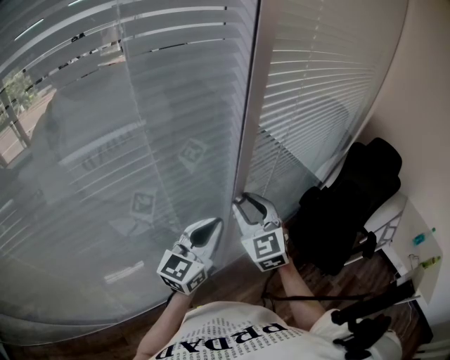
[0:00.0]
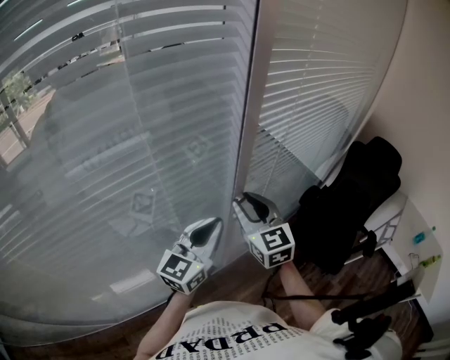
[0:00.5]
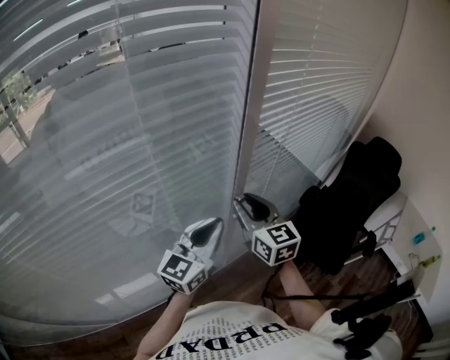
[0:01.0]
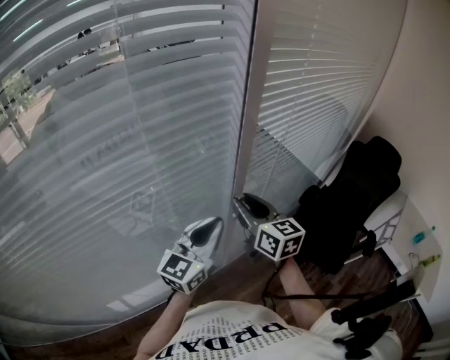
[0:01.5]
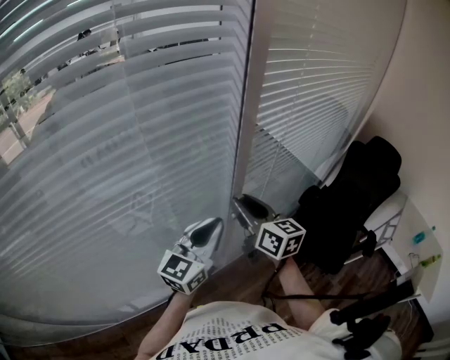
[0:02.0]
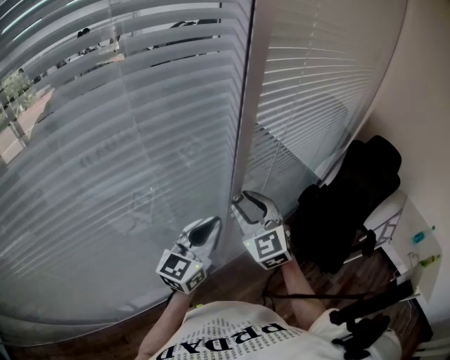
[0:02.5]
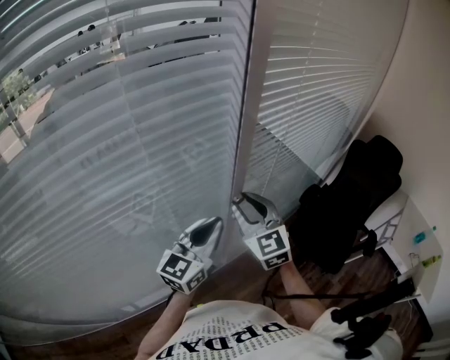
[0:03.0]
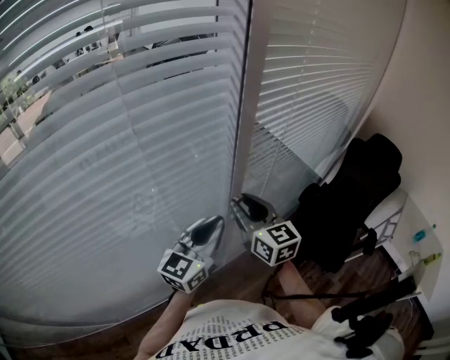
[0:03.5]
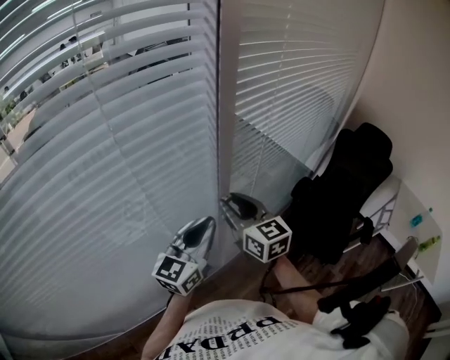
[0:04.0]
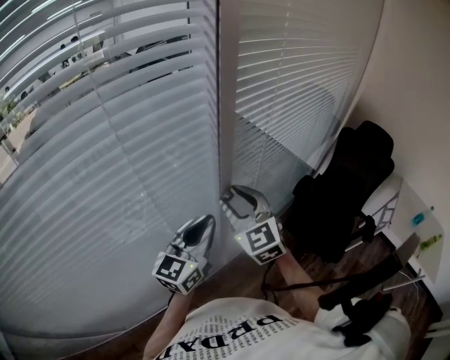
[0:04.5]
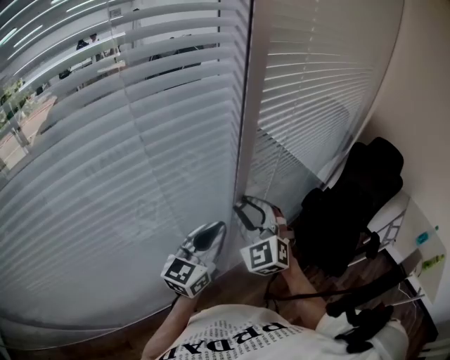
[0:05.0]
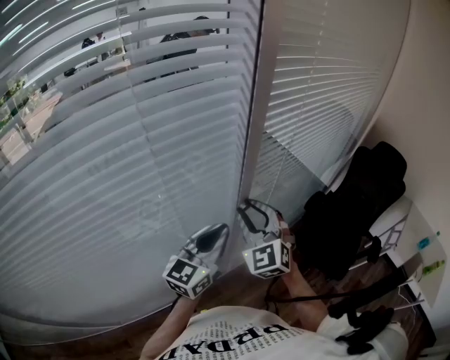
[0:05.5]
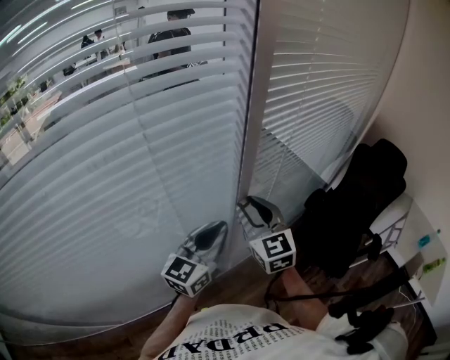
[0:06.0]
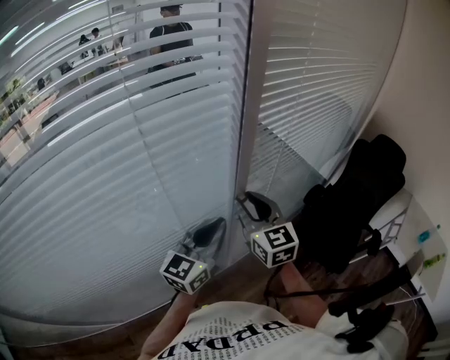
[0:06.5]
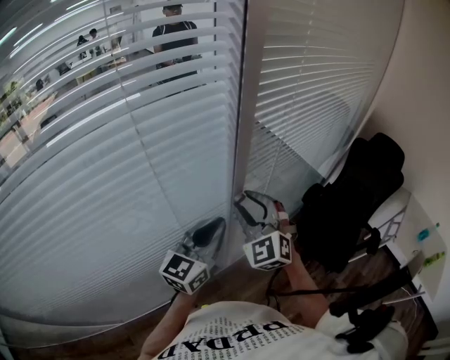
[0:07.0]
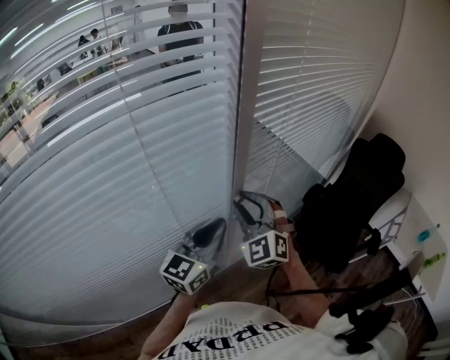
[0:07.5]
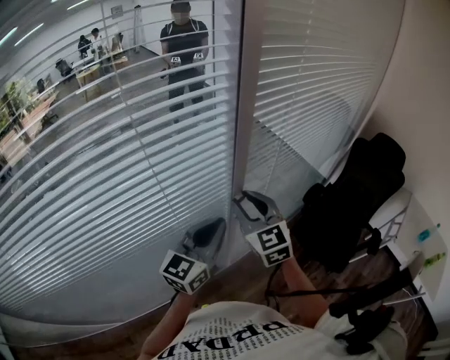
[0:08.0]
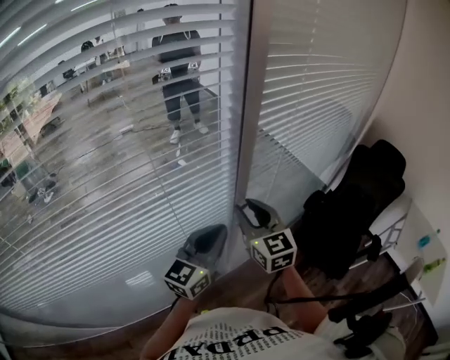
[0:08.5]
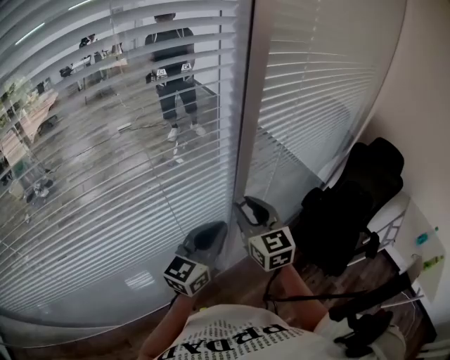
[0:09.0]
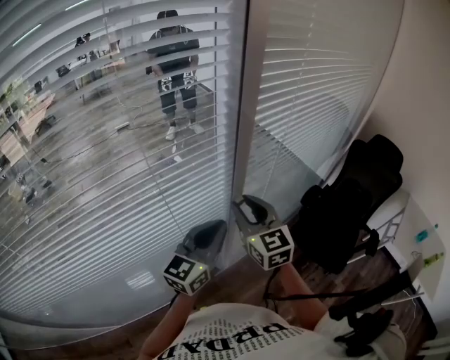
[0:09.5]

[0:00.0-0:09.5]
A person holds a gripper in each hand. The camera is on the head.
0:00.0 to 0:02.0: The right gripper twists about 50 degrees clockwise, seen from behind.
0:04.0 to 0:05.5: The right gripper rotates around the line of its fingers by some 50 degrees, counterclockwise from behind.
0:07.5 to 0:09.5: The right gripper rotates around the line of its fingers by some 40 degrees, clockwise from behind.

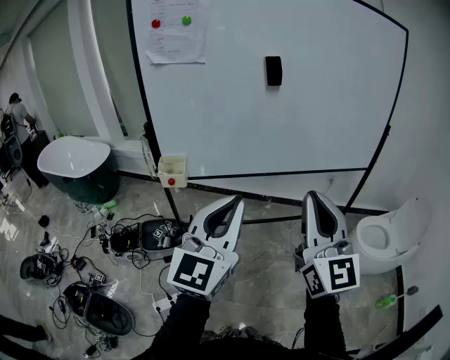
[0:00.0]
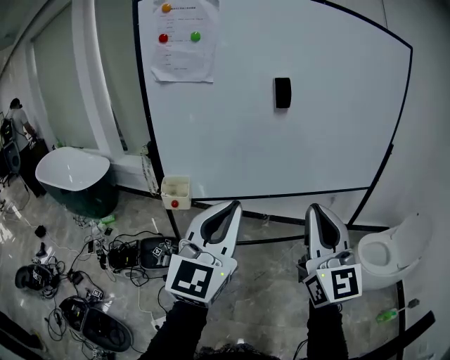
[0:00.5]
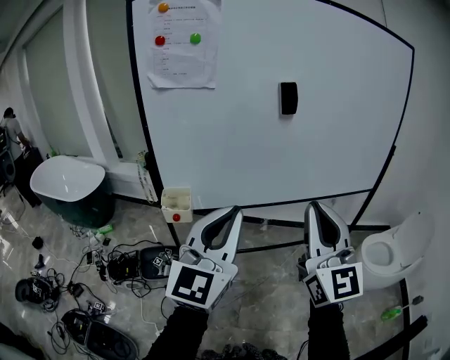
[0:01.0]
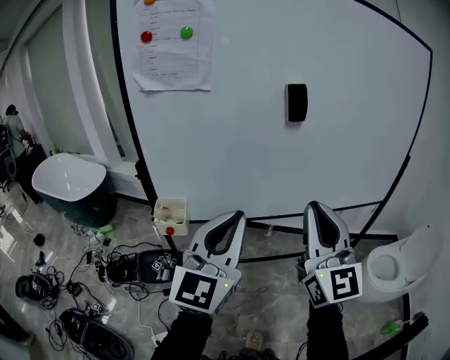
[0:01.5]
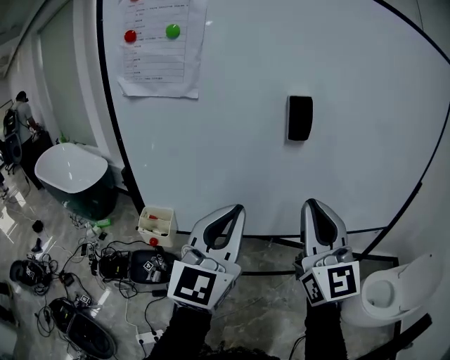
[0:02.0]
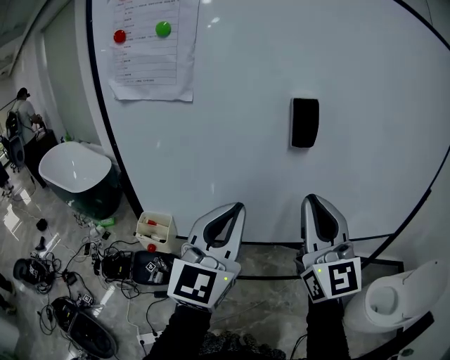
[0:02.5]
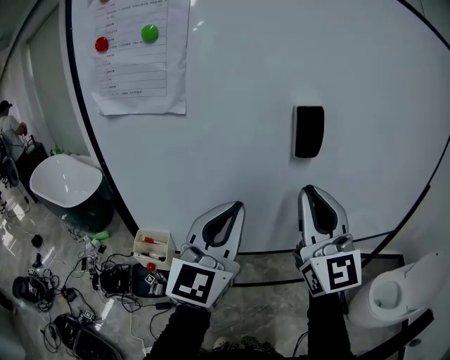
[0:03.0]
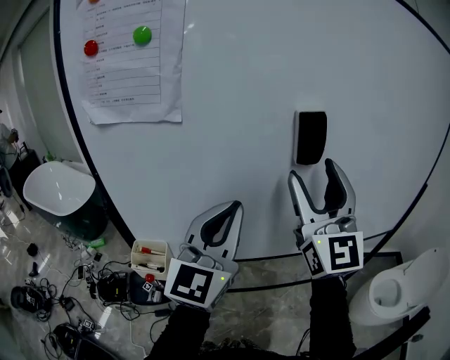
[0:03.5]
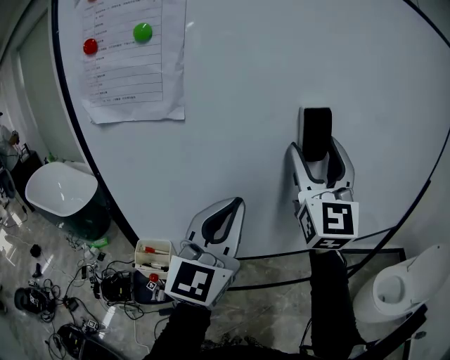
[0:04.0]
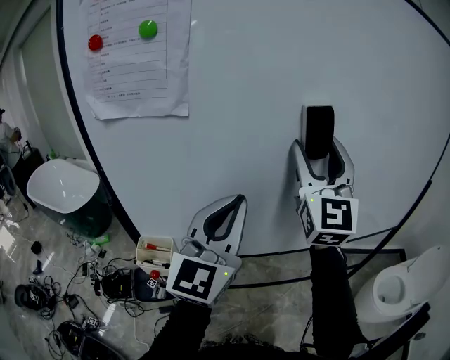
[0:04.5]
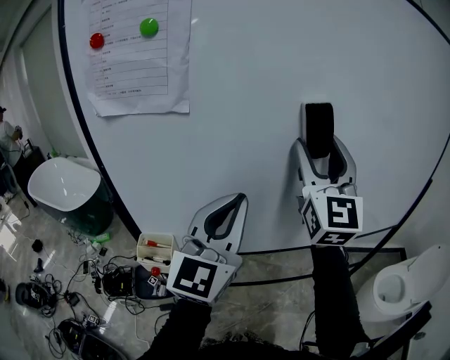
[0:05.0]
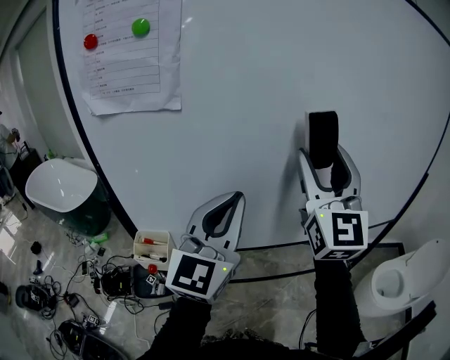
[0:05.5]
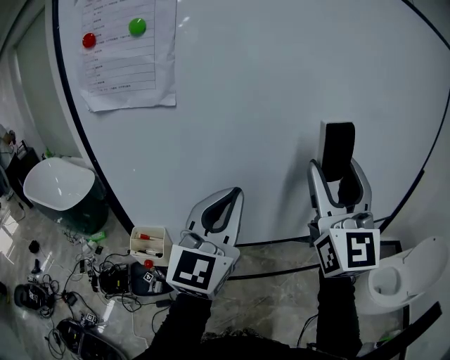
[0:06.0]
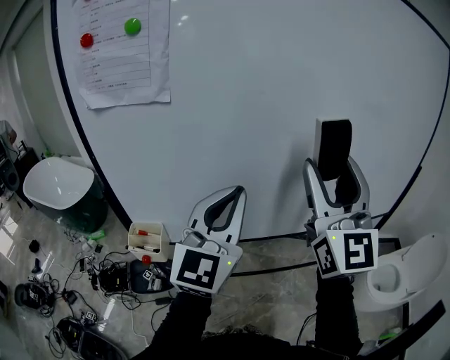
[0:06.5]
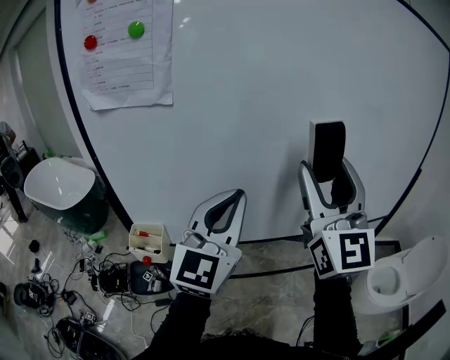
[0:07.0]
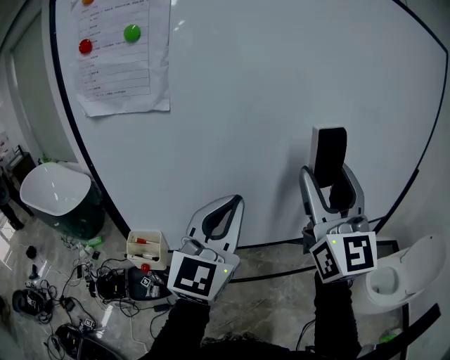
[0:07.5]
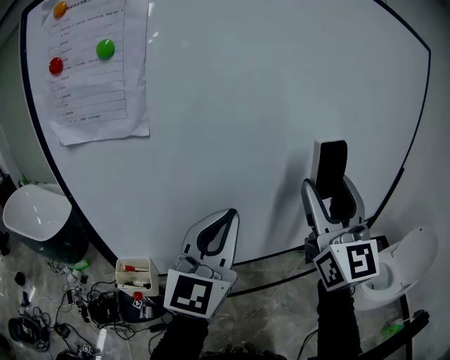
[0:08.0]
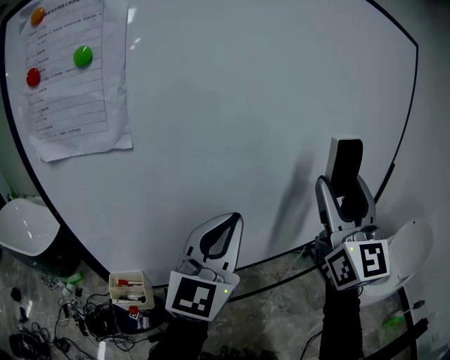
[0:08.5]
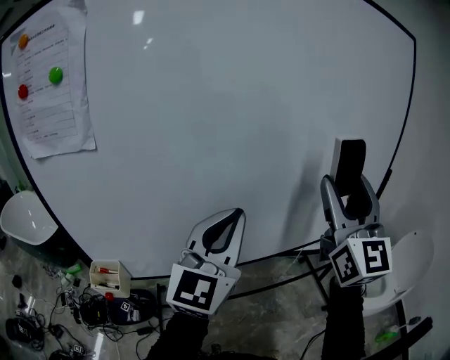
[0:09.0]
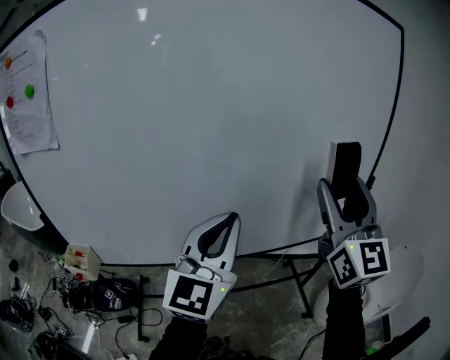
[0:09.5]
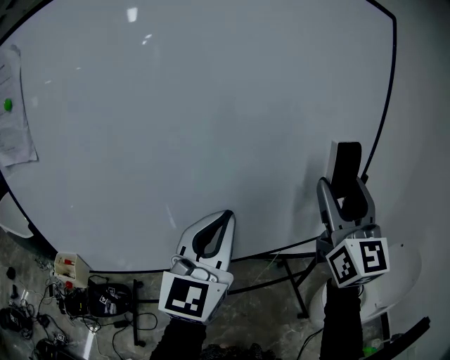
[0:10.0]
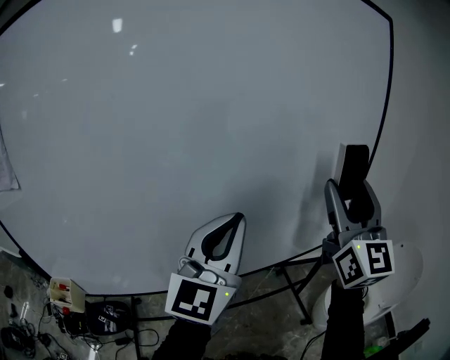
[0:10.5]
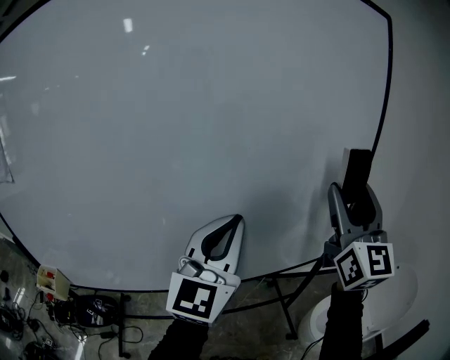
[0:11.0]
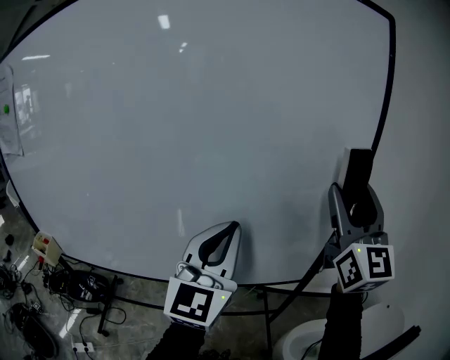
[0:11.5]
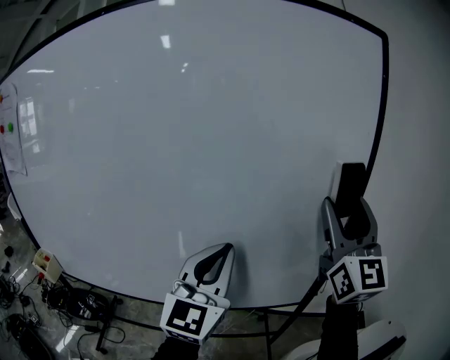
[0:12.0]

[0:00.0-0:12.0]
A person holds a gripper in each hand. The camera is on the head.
0:00.0 to 0:02.0: Both grippers move forward, some 25 cm.
0:02.0 to 0:04.0: The right gripper moves forward and upward, approximately 20 cm, and opens up. The left gripper shifts approximately 10 cm forward.
0:04.0 to 0:06.0: The right gripper travels backward and to the right by about 10 cm.
0:06.0 to 0:08.0: The grippers make only small movements.
0:08.0 to 0:10.0: Both grippers travel together to the right, about 30 cm.
0:10.0 to 0:12.0: The grippers both shift to the right and forward by approximately 20 cm.

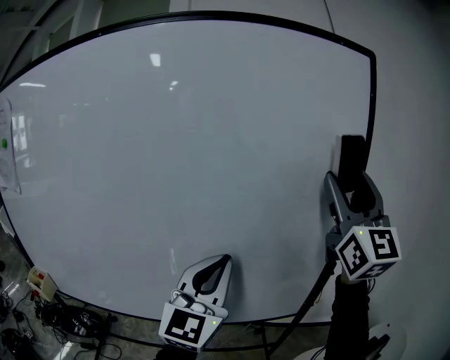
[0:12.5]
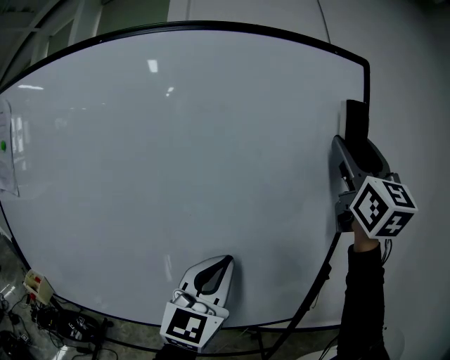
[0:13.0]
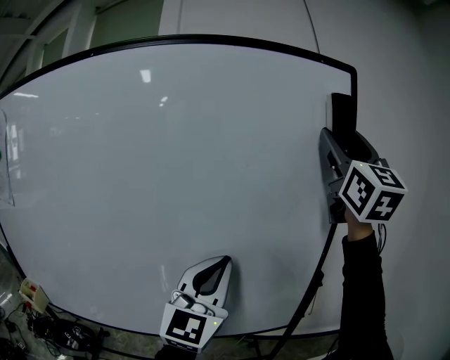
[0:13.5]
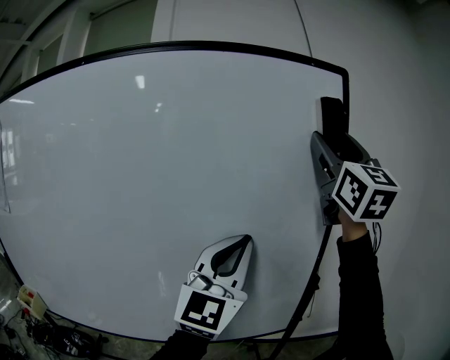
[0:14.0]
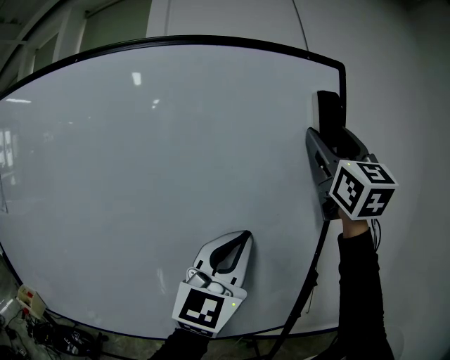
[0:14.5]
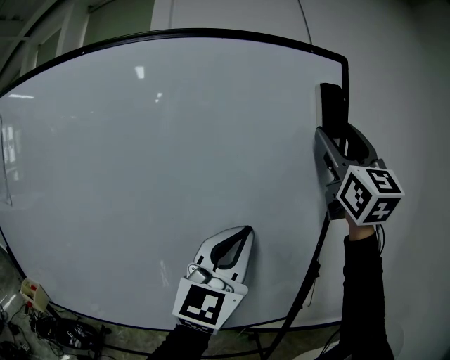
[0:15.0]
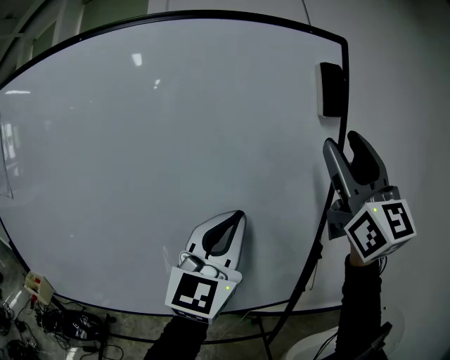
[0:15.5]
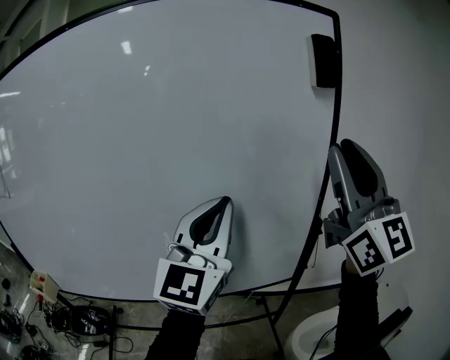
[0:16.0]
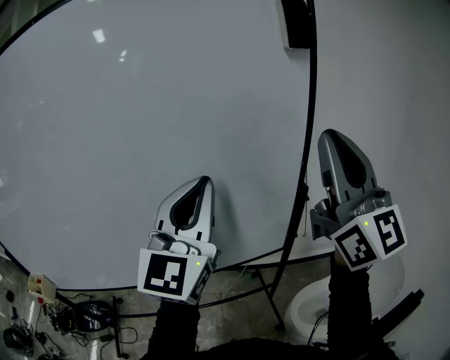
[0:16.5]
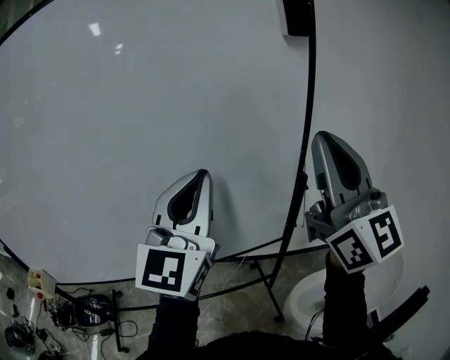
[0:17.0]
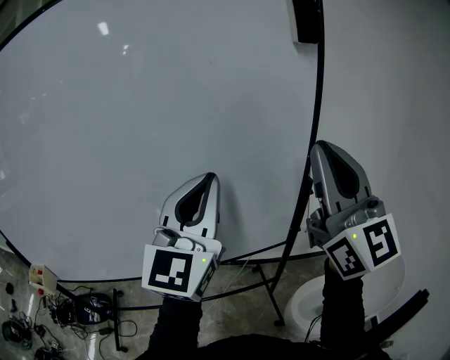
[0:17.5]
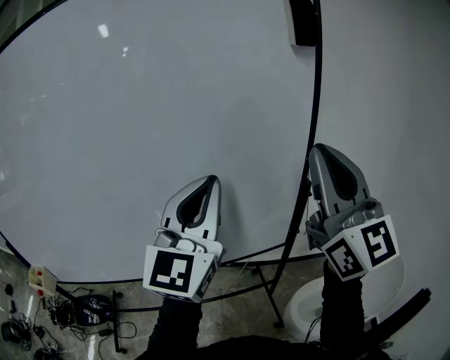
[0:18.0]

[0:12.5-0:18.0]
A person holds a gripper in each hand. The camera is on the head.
0:12.5 to 0:14.5: The left gripper is displaced upward and to the right by some 10 cm. Meanwhile the right gripper is displaced upward by about 10 cm.
0:14.5 to 0:16.0: The left gripper changes place by about 5 cm. The right gripper goes roughly 15 cm backward and downward, and closes.
0:16.0 to 0:18.0: The right gripper heads downward, covering approximately 5 cm.
